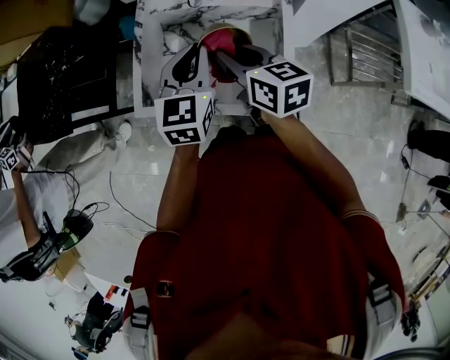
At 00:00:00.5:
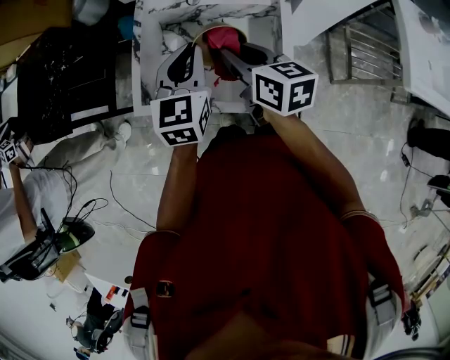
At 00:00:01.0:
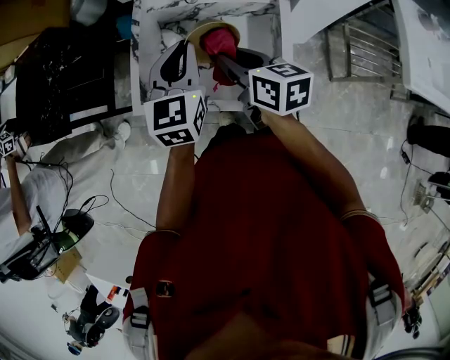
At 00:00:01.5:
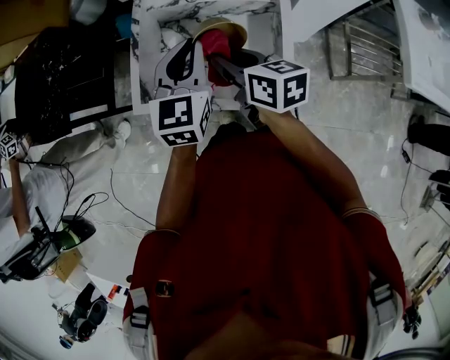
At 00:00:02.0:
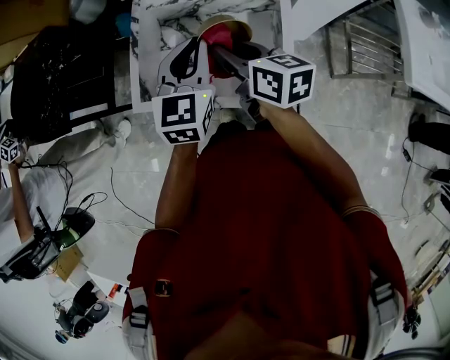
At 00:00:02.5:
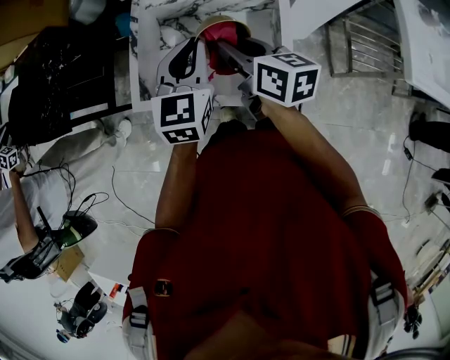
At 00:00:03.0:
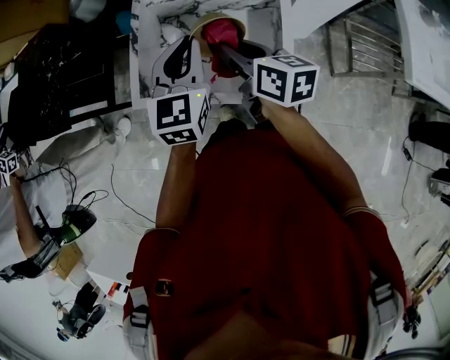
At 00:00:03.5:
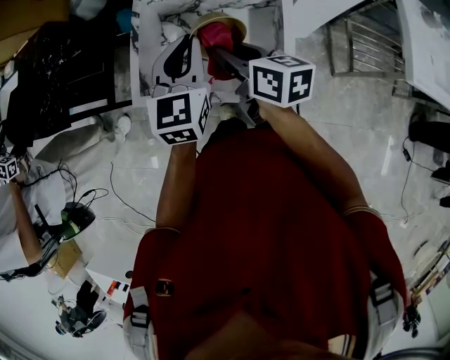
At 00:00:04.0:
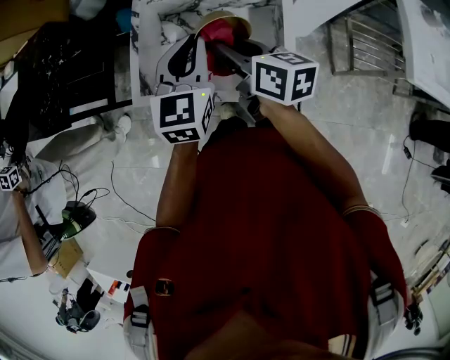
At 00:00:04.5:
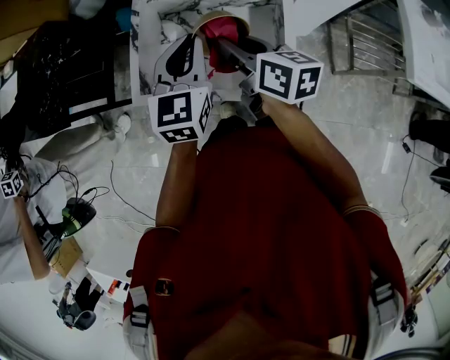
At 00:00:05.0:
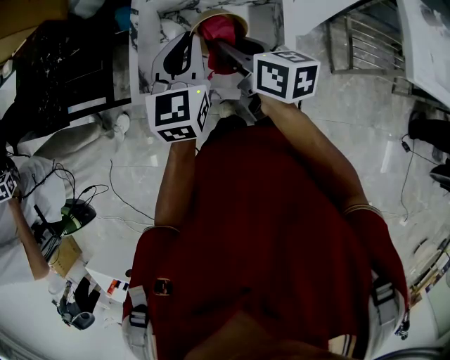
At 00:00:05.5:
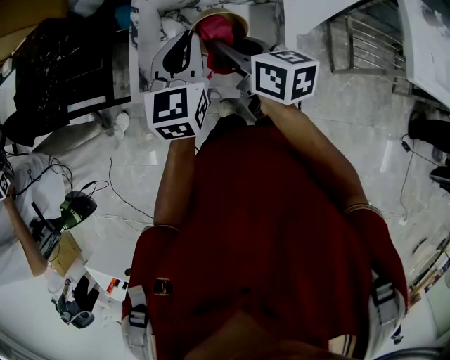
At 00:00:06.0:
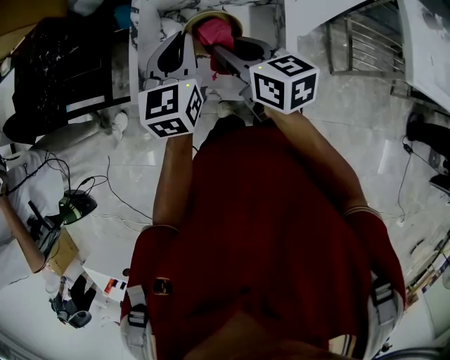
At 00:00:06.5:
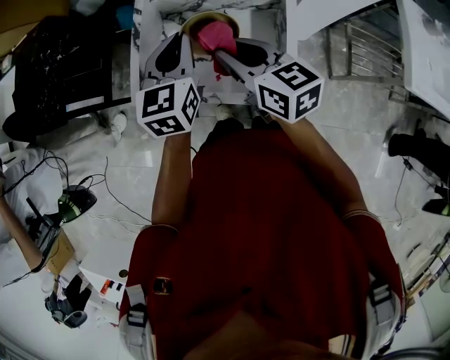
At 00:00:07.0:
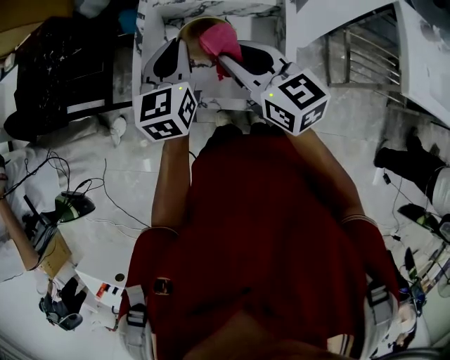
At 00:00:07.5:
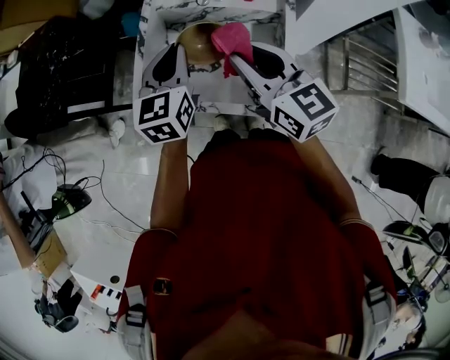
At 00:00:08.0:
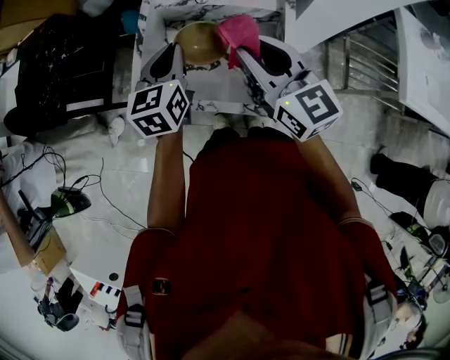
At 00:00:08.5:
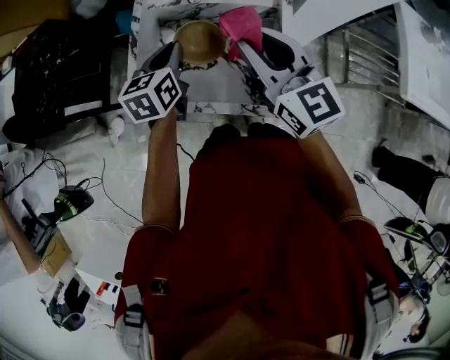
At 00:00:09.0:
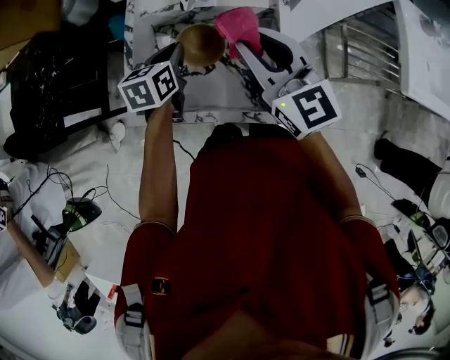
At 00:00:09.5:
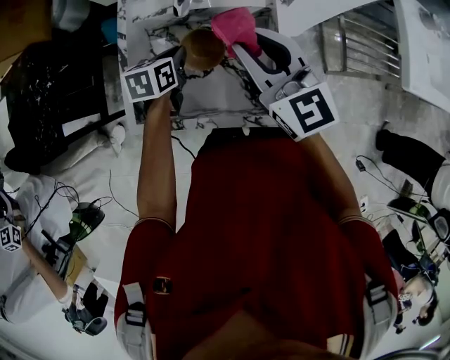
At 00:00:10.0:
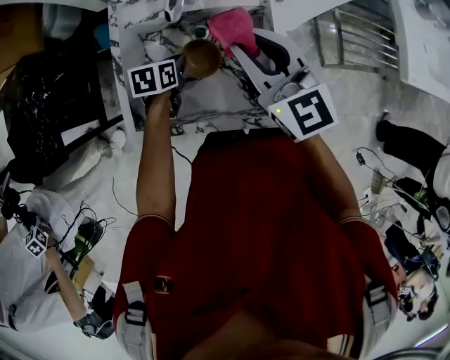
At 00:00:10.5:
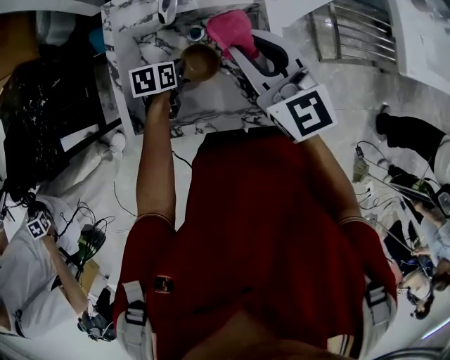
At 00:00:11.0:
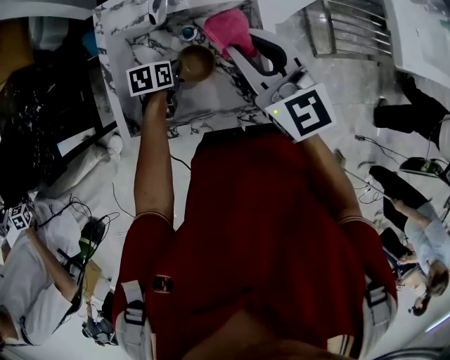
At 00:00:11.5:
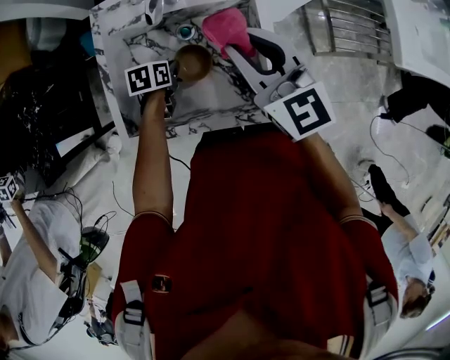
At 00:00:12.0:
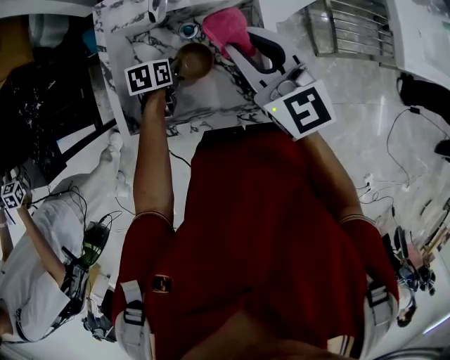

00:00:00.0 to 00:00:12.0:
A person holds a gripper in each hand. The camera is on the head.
00:00:00.0 to 00:00:06.0: The grippers make only small movements.
00:00:06.0 to 00:00:08.0: The right gripper shifts some 10 cm upward, and rotates approximately 30 degrees.
00:00:08.0 to 00:00:10.0: The right gripper travels forward by approximately 5 cm. Meanwhile the left gripper moves downward, about 20 cm, and tips its fingers downward by some 30 degrees.
00:00:10.0 to 00:00:12.0: There are only small adjustments of the grippers.

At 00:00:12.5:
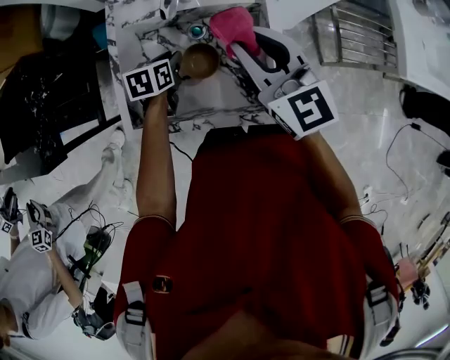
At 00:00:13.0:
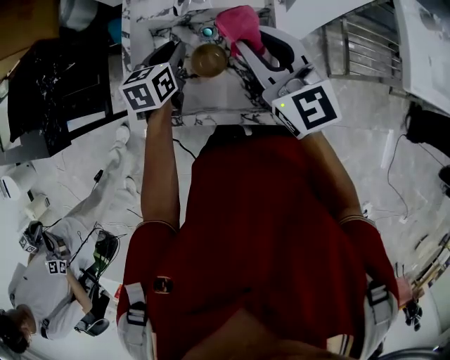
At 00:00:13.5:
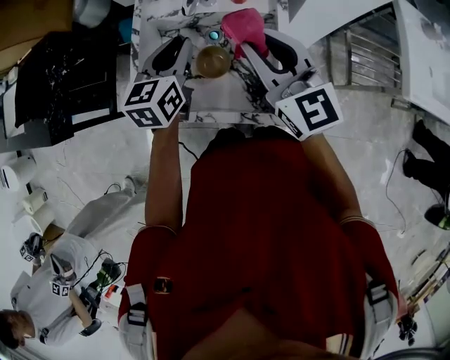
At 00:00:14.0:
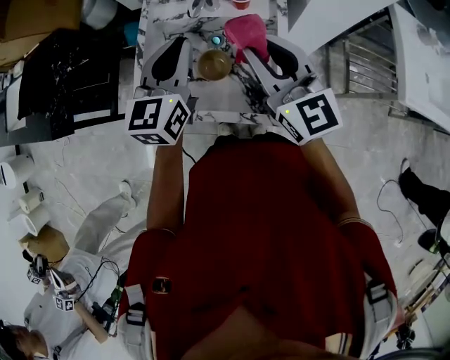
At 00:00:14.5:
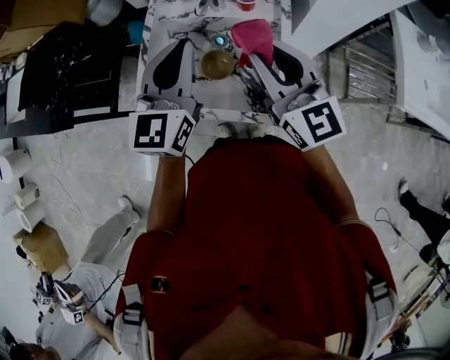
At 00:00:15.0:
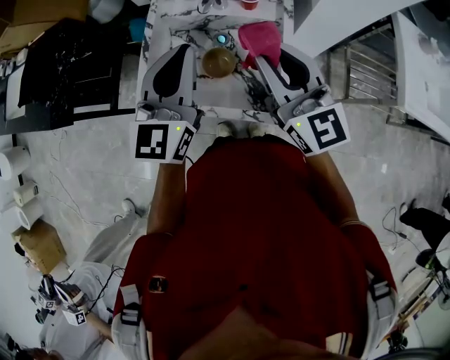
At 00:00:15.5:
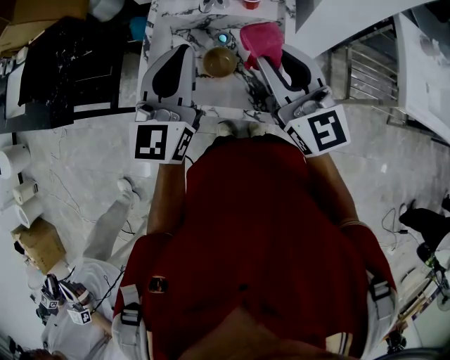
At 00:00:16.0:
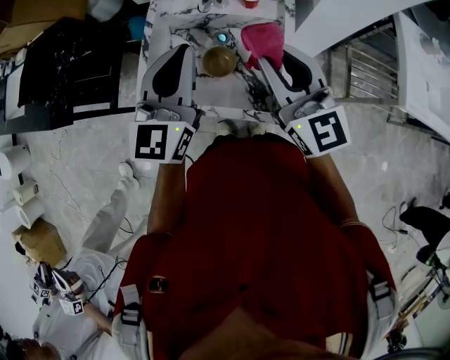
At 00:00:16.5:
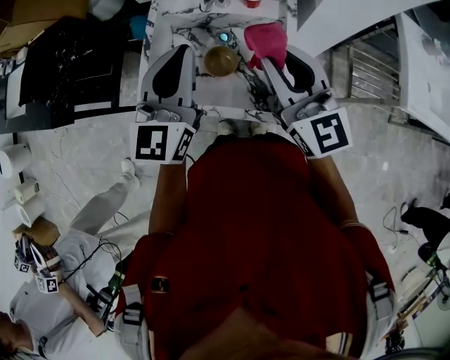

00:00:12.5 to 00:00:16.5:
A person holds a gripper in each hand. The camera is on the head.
00:00:12.5 to 00:00:14.5: The right gripper shifts approximately 10 cm backward and upward. The left gripper travels upward by approximately 30 cm, and tips its fingers upward by some 50 degrees.
00:00:14.5 to 00:00:16.5: The grippers stay close to where they were, moving slightly.

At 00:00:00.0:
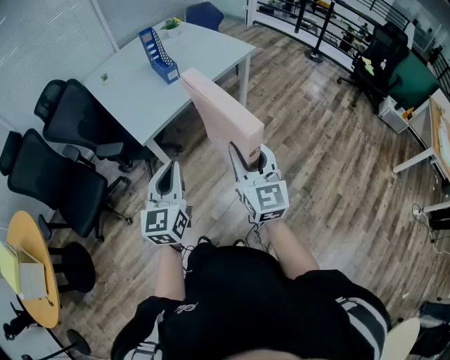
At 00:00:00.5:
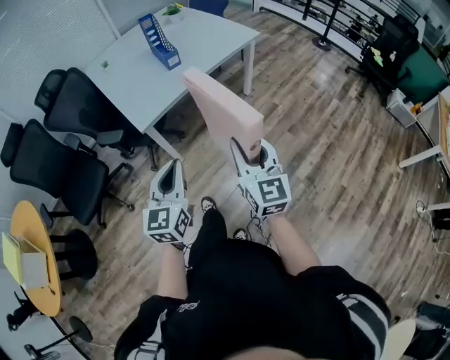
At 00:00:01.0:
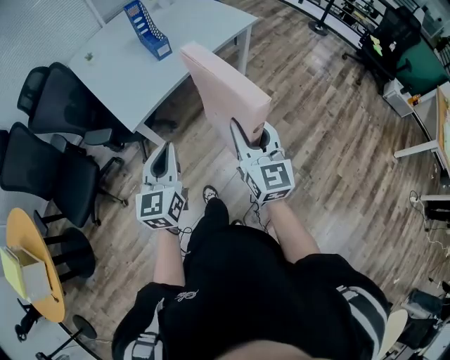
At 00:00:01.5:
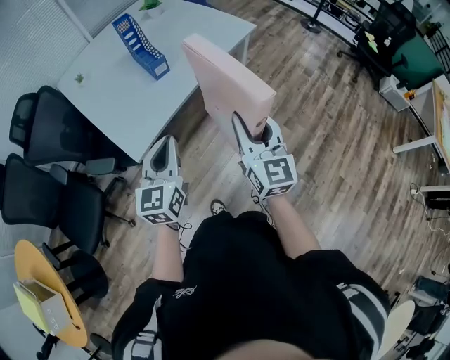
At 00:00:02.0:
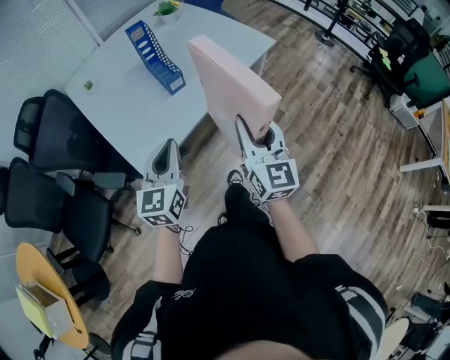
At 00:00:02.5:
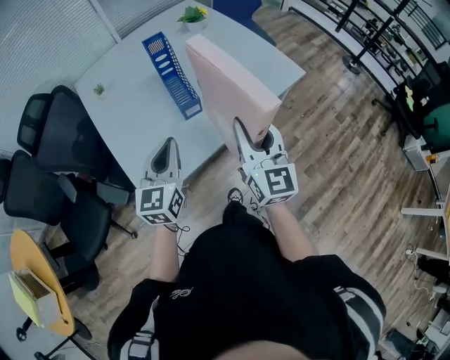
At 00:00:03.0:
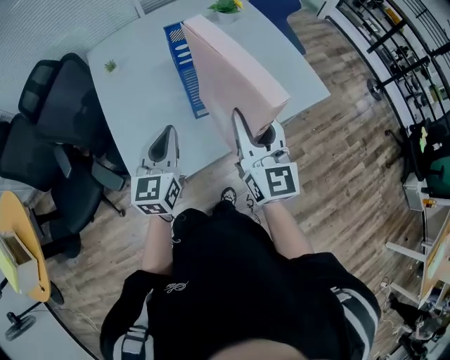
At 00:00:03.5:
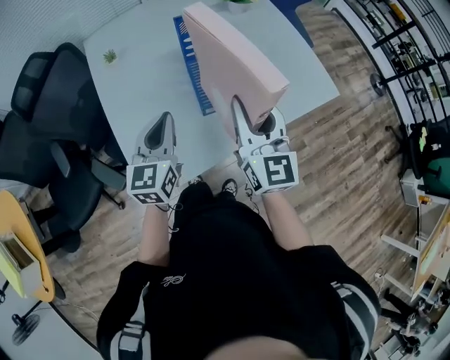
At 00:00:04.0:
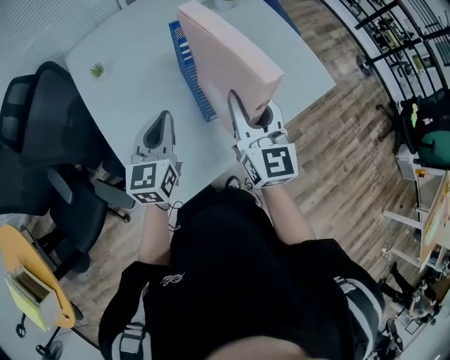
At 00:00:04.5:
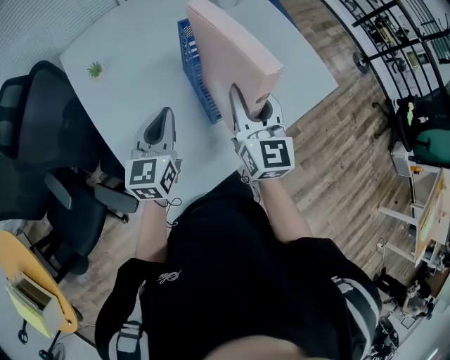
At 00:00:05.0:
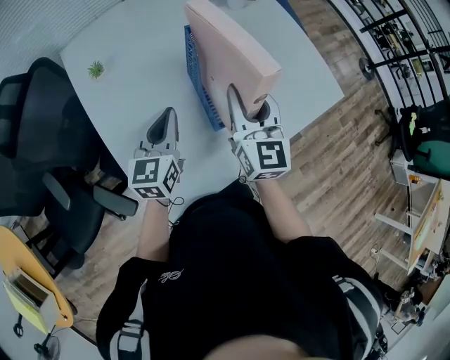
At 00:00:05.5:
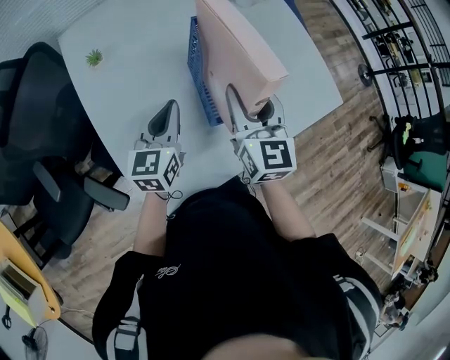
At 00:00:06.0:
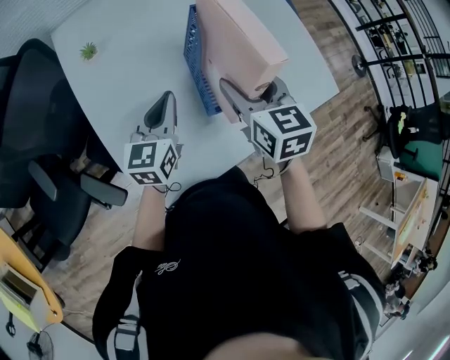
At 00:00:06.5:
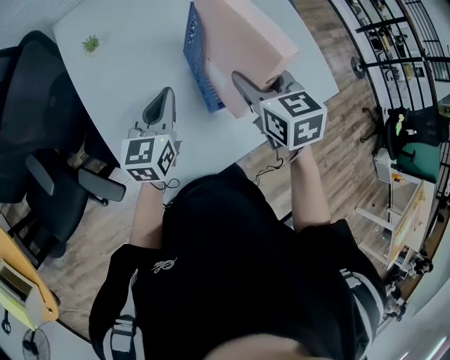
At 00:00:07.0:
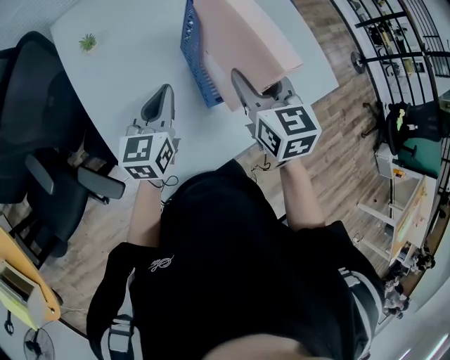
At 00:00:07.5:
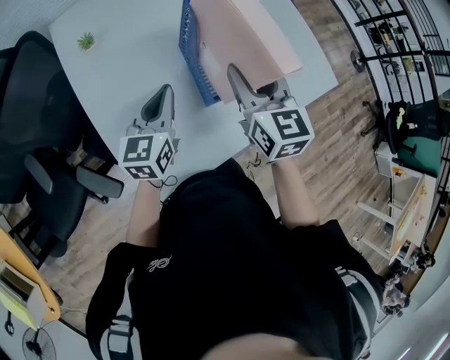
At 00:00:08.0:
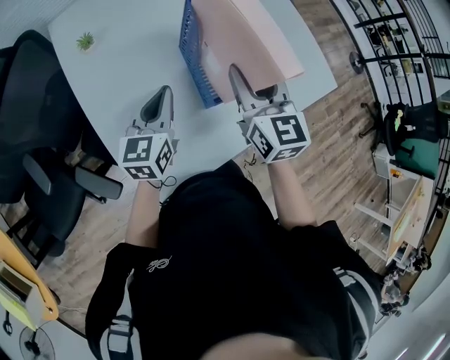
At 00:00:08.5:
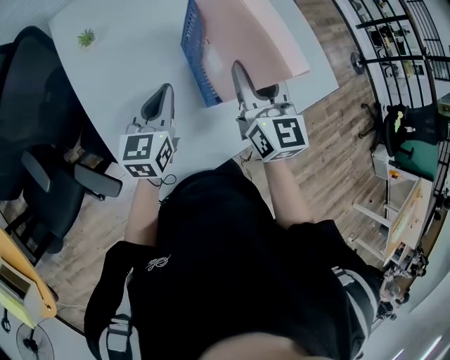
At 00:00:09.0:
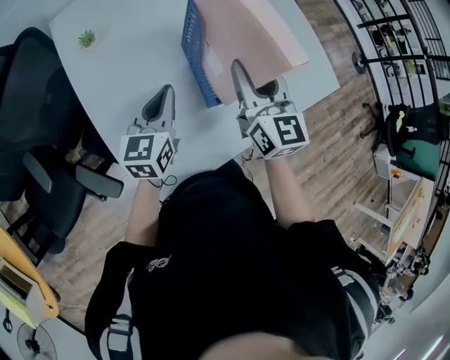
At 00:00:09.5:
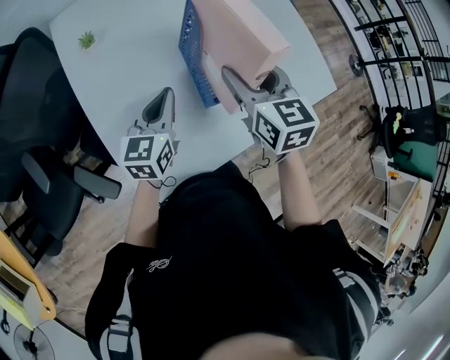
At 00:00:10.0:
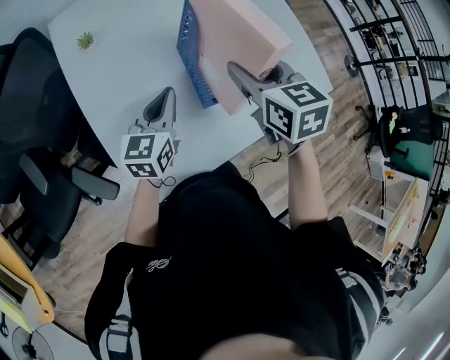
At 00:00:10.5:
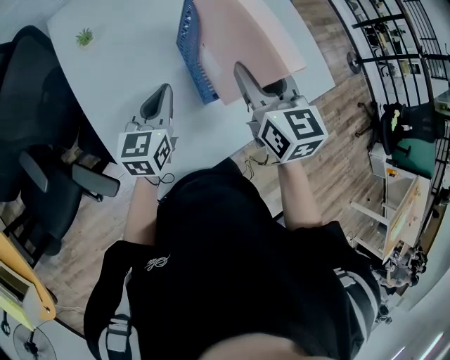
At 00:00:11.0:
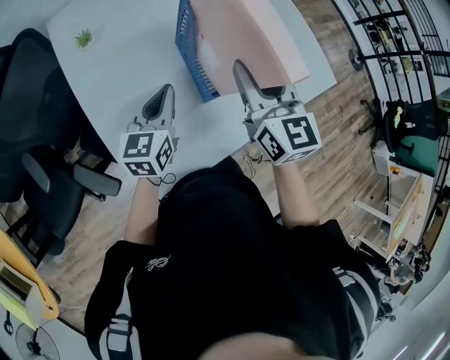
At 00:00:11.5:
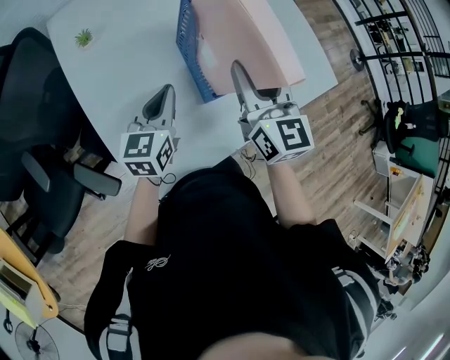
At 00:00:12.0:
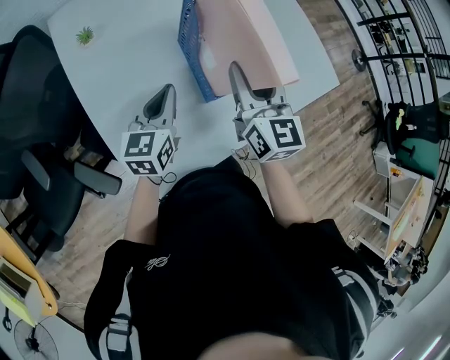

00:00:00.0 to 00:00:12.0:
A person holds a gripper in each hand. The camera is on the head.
00:00:00.0 to 00:00:02.0: Both grippers travel together forward, approximately 35 cm.
00:00:02.0 to 00:00:04.0: The grippers both shift forward by roughly 35 cm.
00:00:04.0 to 00:00:06.0: The right gripper shifts about 15 cm forward, downward and to the left, turns by some 30 degrees, and opens its fingers. Meanwhile the left gripper shifts roughly 10 cm forward and downward.
00:00:06.0 to 00:00:08.0: The right gripper closes.
00:00:08.0 to 00:00:10.0: The right gripper turns by approximately 20 degrees.
00:00:10.0 to 00:00:12.0: The right gripper changes its angle by about 30 degrees.
